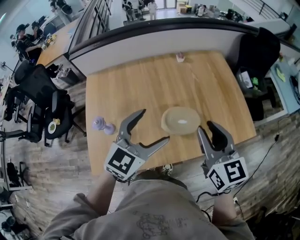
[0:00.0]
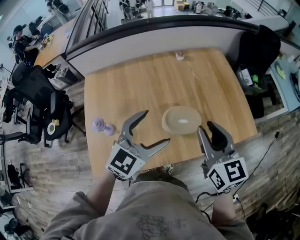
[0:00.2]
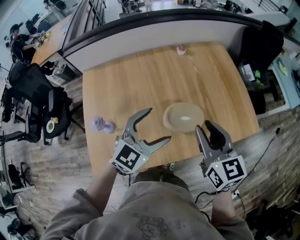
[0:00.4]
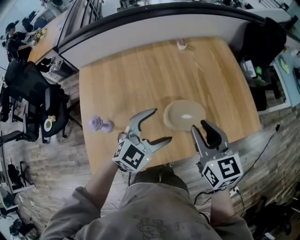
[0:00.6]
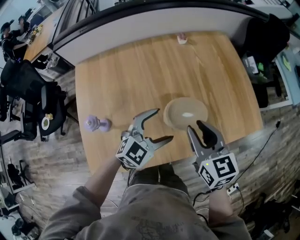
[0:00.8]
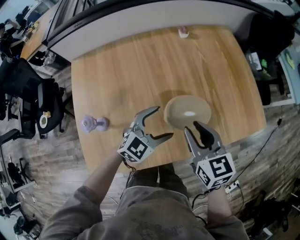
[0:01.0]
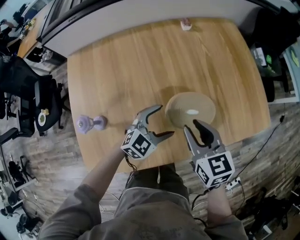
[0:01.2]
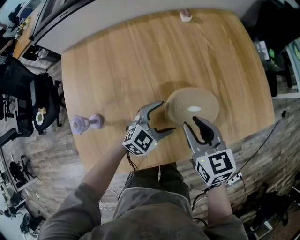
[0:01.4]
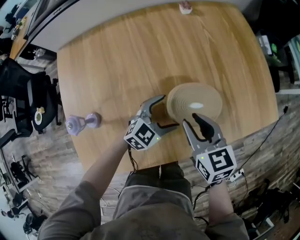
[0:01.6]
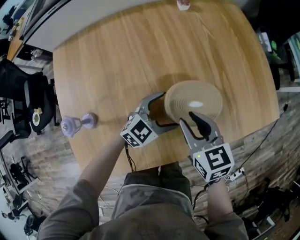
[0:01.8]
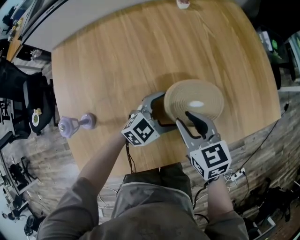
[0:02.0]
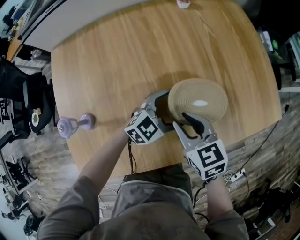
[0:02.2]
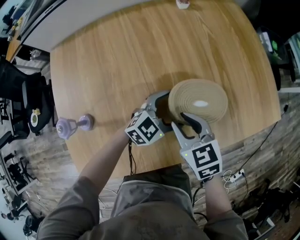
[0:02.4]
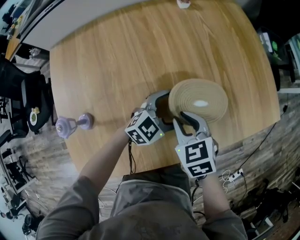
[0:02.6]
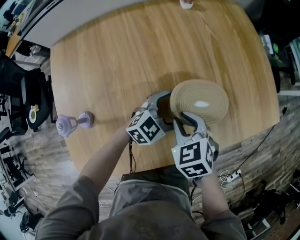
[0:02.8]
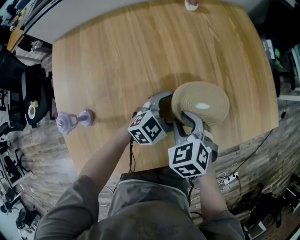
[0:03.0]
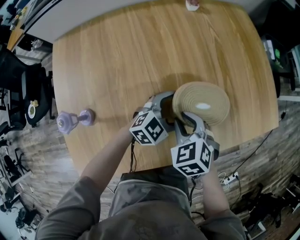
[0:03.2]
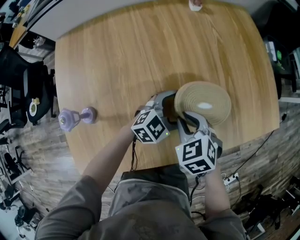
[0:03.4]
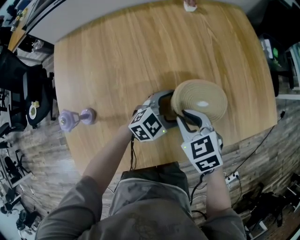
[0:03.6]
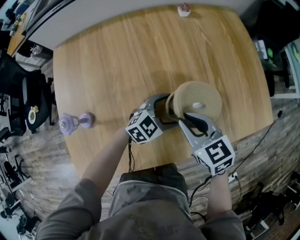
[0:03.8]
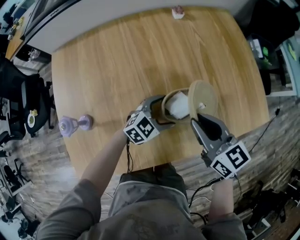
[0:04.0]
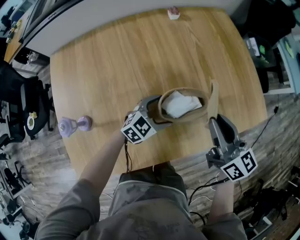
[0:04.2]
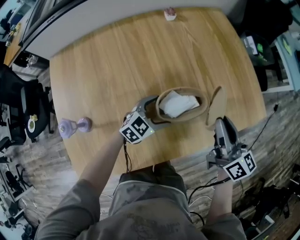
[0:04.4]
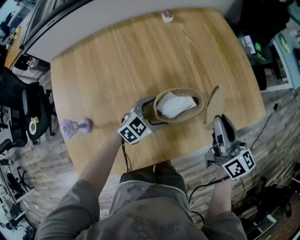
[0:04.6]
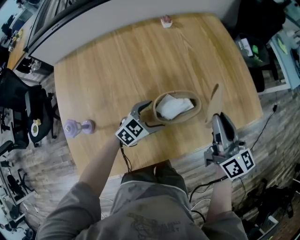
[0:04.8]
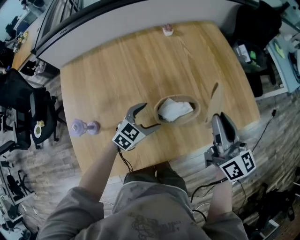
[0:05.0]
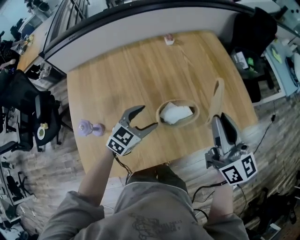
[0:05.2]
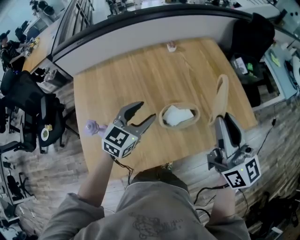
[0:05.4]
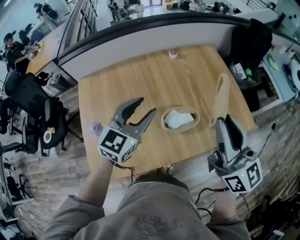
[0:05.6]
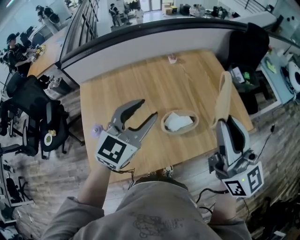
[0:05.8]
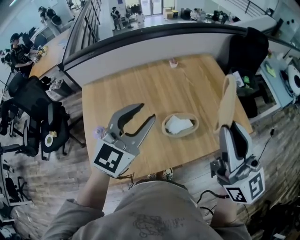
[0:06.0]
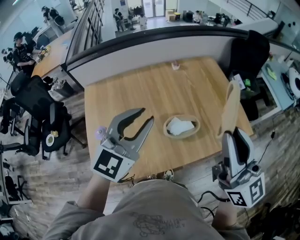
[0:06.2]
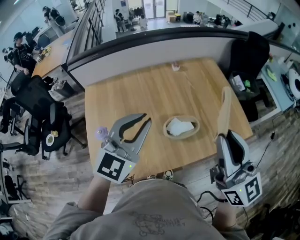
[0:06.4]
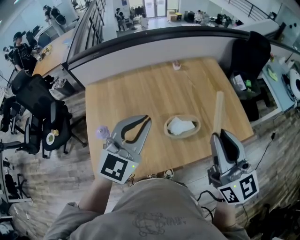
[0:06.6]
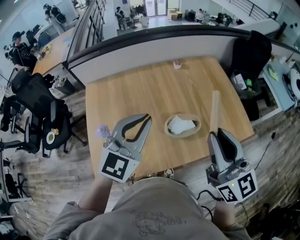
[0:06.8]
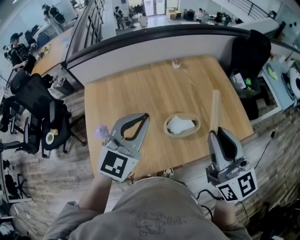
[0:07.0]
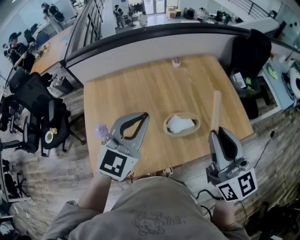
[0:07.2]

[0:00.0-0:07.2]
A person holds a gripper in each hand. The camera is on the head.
0:00.0 to 0:01.4: Both grippers travel together downward, about 25 cm. The right gripper swivels approximately 20 degrees, while the left gripper swivels roughly 20 degrees.
0:01.4 to 0:02.8: The left gripper shifts by roughly 5 cm. Meanwhile the right gripper moves downward, approximately 10 cm, and changes its angle by approximately 30 degrees.
0:02.8 to 0:04.4: The right gripper shifts about 20 cm to the right and upward, and angles its fingers upward, by about 50 degrees.
0:04.4 to 0:05.8: The two grippers go about 35 cm upward. The right gripper turns by some 30 degrees. The left gripper swivels roughly 30 degrees, and closes up.
0:05.8 to 0:07.2: The left gripper closes its fingers.

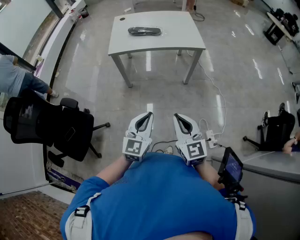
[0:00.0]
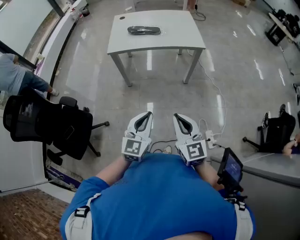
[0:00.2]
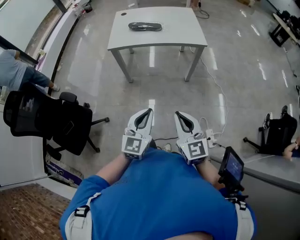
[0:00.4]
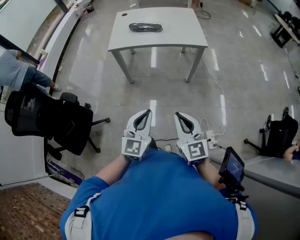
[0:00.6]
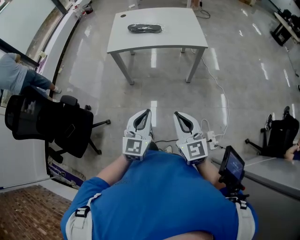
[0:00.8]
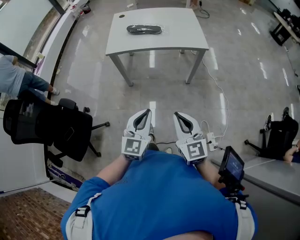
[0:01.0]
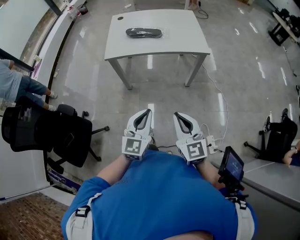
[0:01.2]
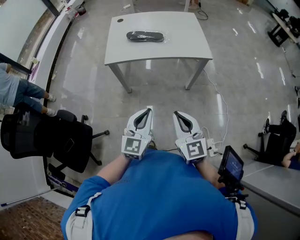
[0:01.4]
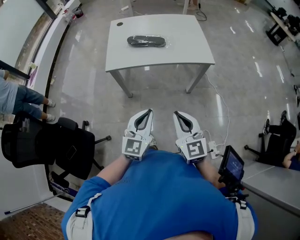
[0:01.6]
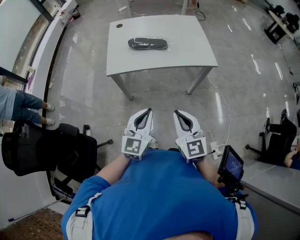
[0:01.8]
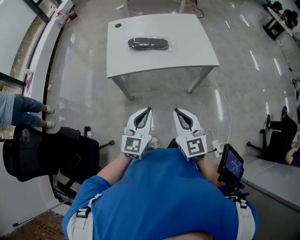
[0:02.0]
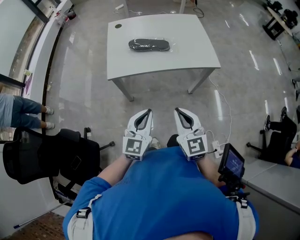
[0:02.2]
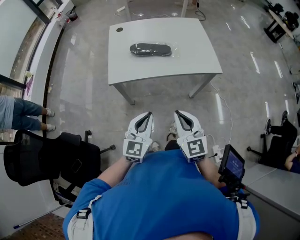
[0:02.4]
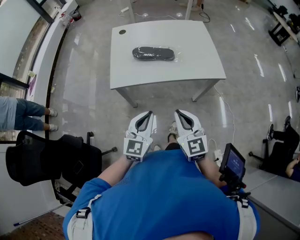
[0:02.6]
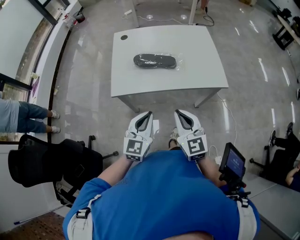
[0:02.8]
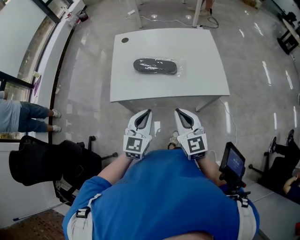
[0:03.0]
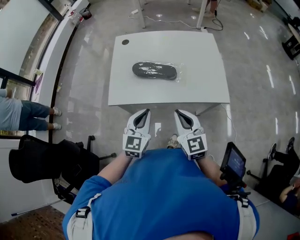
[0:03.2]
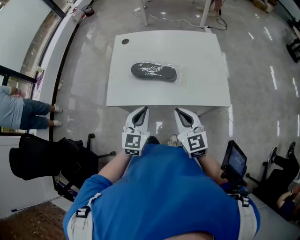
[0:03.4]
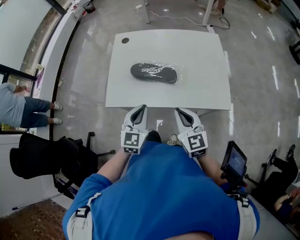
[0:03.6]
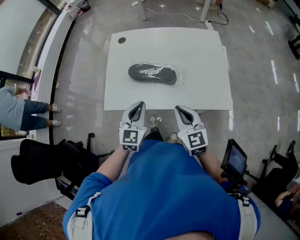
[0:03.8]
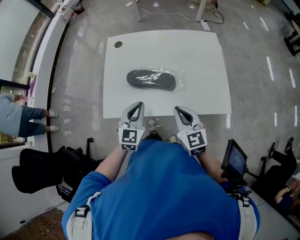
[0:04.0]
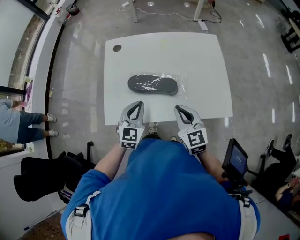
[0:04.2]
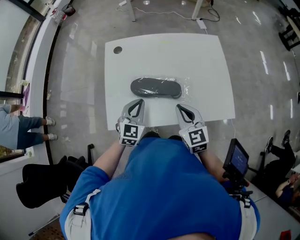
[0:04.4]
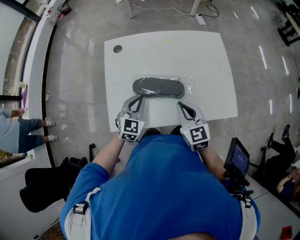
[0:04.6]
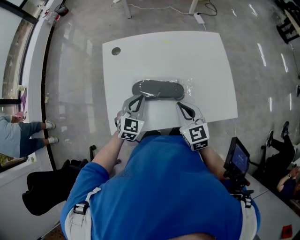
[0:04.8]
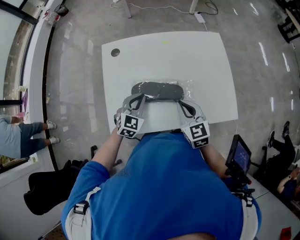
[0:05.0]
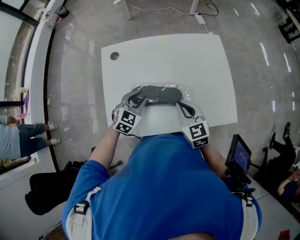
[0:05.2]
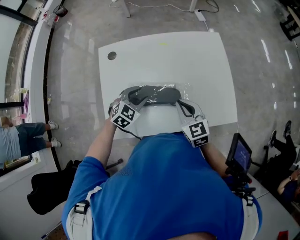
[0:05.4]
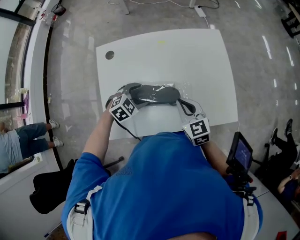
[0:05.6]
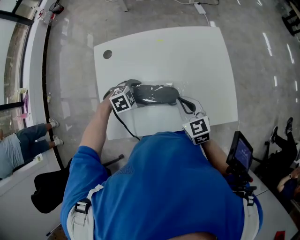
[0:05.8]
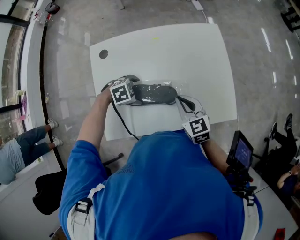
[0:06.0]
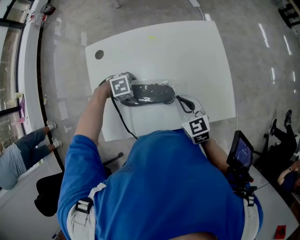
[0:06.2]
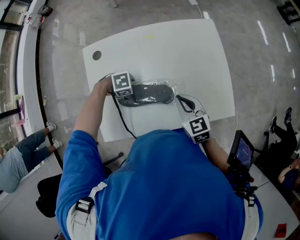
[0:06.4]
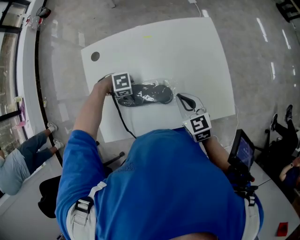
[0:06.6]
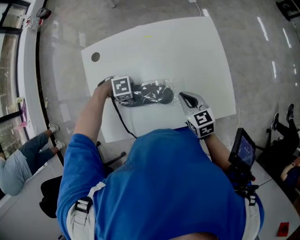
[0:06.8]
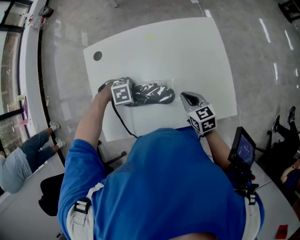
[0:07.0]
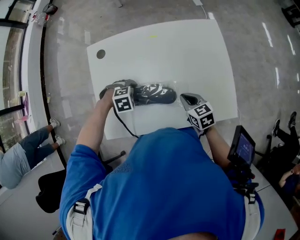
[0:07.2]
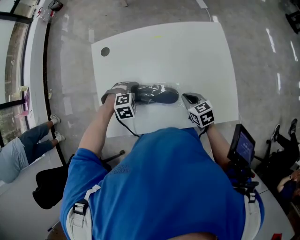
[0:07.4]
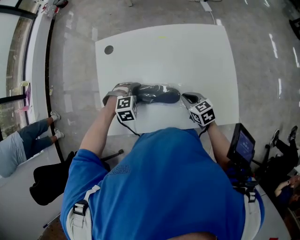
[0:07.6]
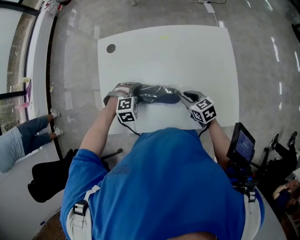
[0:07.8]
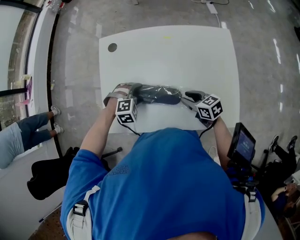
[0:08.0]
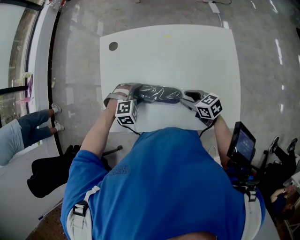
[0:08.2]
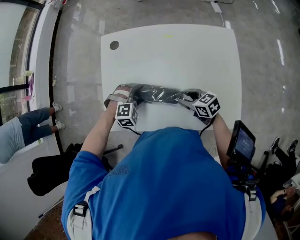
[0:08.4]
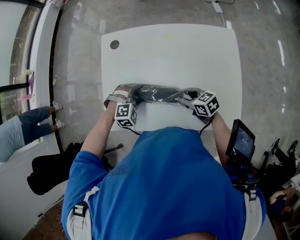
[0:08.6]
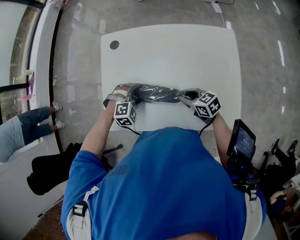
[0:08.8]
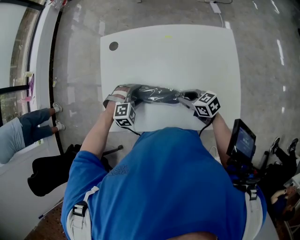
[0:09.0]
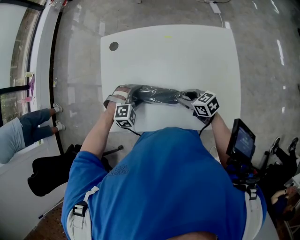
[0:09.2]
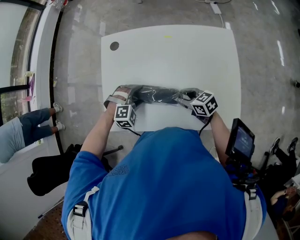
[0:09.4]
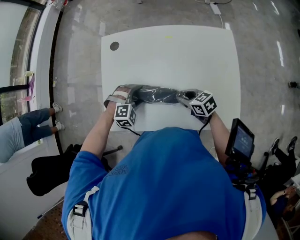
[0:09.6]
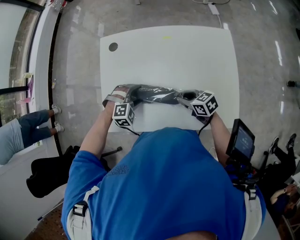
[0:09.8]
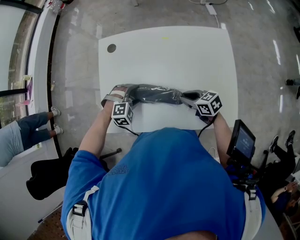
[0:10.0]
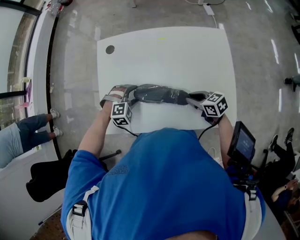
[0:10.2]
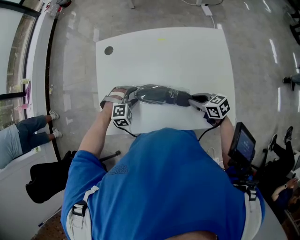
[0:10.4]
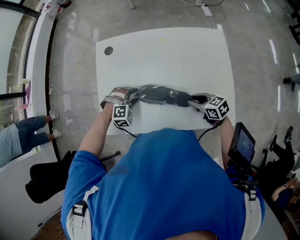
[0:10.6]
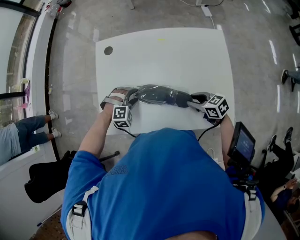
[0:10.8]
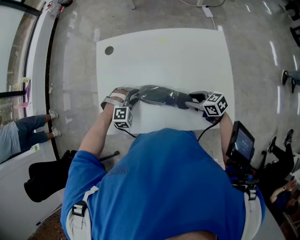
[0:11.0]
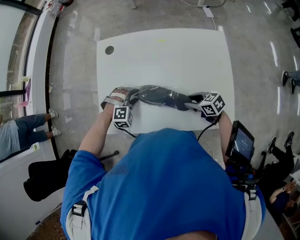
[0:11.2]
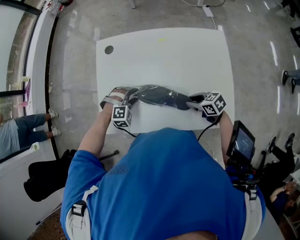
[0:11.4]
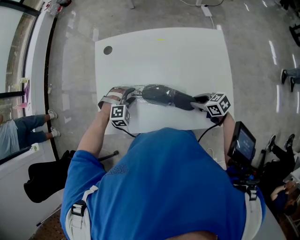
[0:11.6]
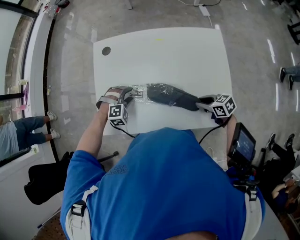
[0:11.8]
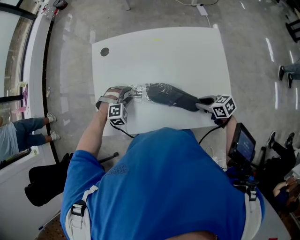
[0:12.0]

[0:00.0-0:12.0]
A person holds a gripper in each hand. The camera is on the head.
0:00.0 to 0:01.6: The grippers both shift forward by roughly 20 cm.
0:01.6 to 0:03.0: Both grippers move forward, roughly 25 cm.
0:03.0 to 0:04.4: Both grippers travel together forward, roughly 25 cm.
0:04.4 to 0:06.0: The right gripper shifts by about 15 cm. The left gripper shifts some 15 cm downward, tilts its fingers about 40 degrees downward, and opens its fingers.
0:06.0 to 0:07.6: The left gripper changes its angle by about 20 degrees; the right gripper heads downward, covering about 10 cm, and turns by roughly 20 degrees.
0:07.6 to 0:09.0: The right gripper opens.
0:09.0 to 0:10.4: The right gripper shifts about 5 cm to the right.
0:10.4 to 0:12.0: The right gripper ends up roughly 5 cm from where it was.

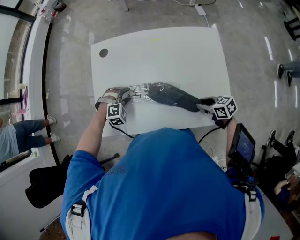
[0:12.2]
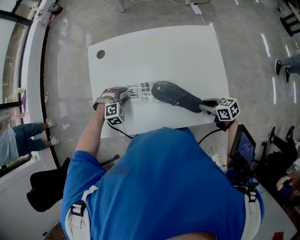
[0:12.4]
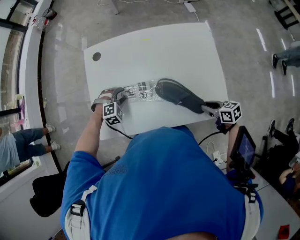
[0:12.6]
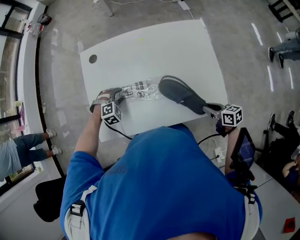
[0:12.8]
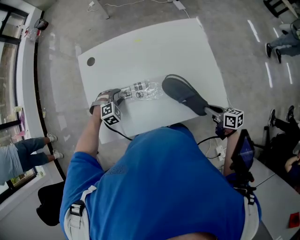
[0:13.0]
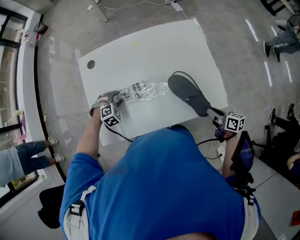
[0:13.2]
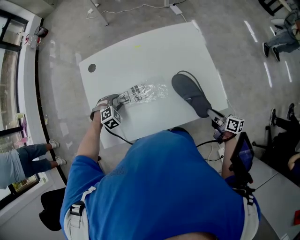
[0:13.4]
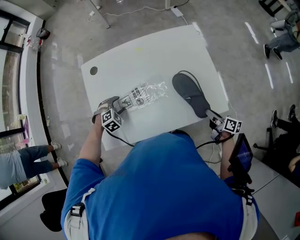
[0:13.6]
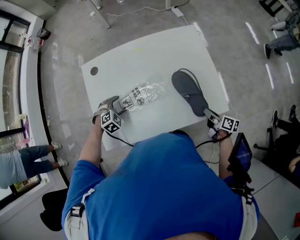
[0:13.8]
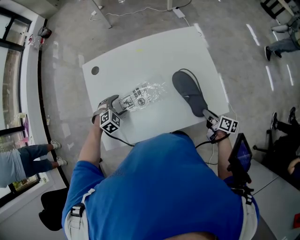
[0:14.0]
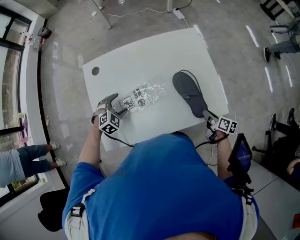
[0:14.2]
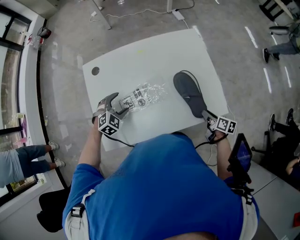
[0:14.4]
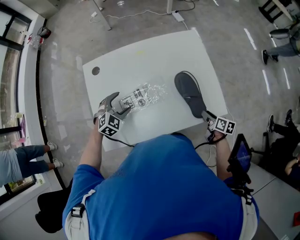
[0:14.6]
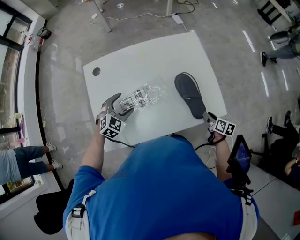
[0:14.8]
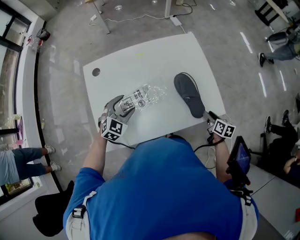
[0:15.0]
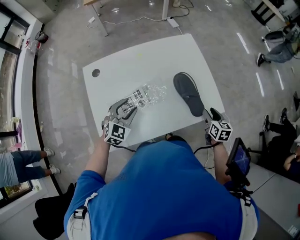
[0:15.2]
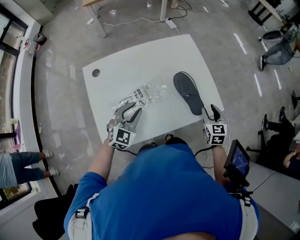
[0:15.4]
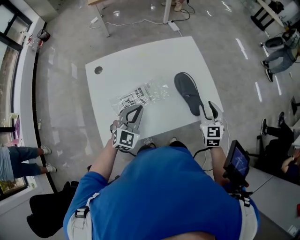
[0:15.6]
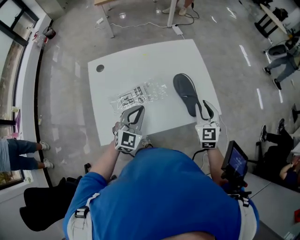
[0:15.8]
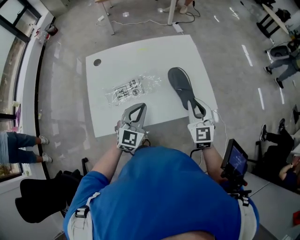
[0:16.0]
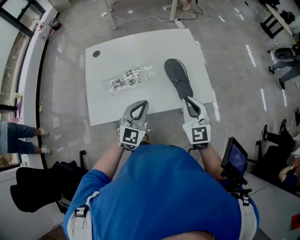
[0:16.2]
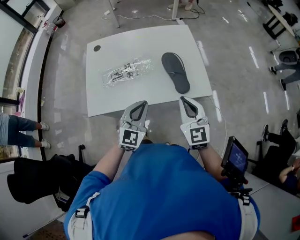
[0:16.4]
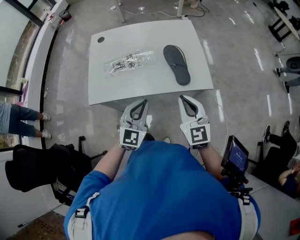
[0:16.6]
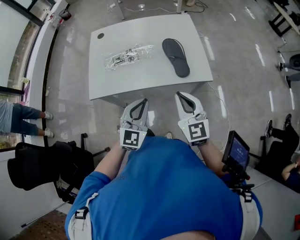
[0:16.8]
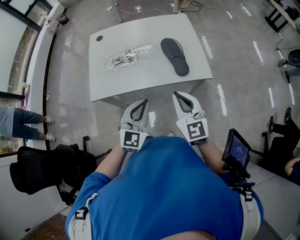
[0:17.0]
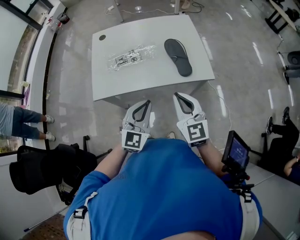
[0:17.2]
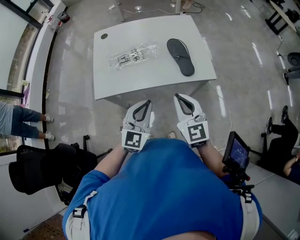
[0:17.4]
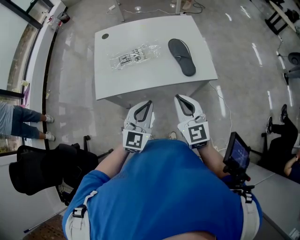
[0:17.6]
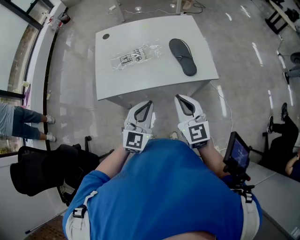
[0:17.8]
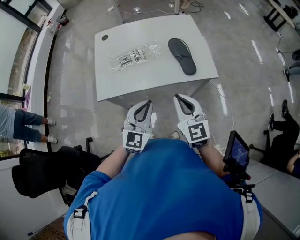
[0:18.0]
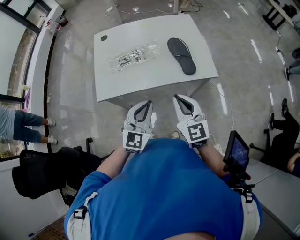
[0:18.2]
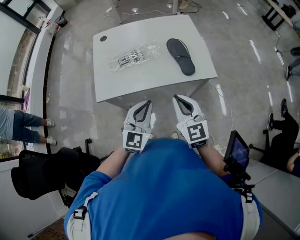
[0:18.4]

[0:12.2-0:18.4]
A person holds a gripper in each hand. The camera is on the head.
0:12.2 to 0:13.8: The right gripper moves roughly 15 cm, and rotates approximately 60 degrees.
0:13.8 to 0:15.4: The right gripper is displaced upward by some 10 cm, rolls counterclockwise, seen from behind, by roughly 50 degrees, and opens its fingers; the left gripper heads upward and to the right, covering about 15 cm, points its fingers about 40 degrees further upward, and closes.
0:15.4 to 0:16.8: The right gripper is displaced backward and upward by approximately 25 cm, rotates about 40 degrees, and closes its fingers; the left gripper travels backward and to the right by some 30 cm, and turns by about 20 degrees.
0:16.8 to 0:18.4: The right gripper goes approximately 5 cm to the left.
